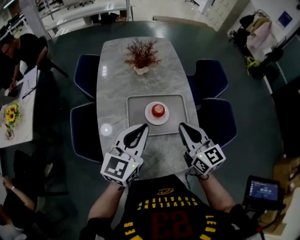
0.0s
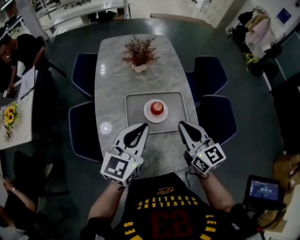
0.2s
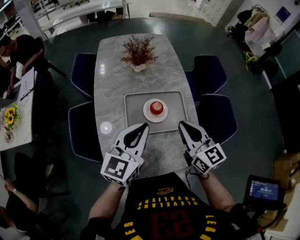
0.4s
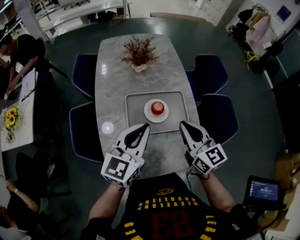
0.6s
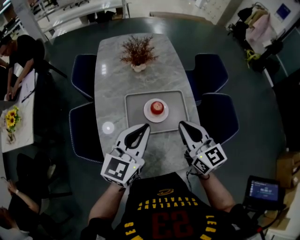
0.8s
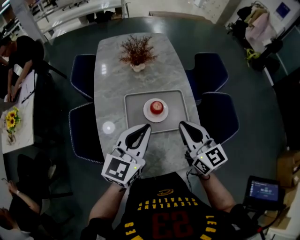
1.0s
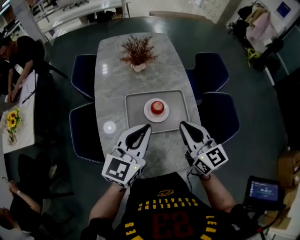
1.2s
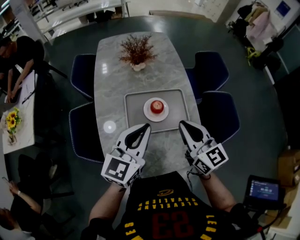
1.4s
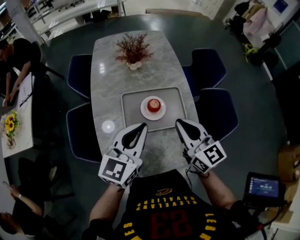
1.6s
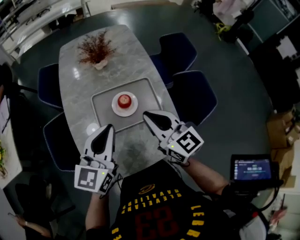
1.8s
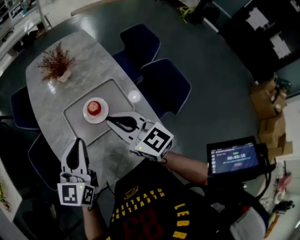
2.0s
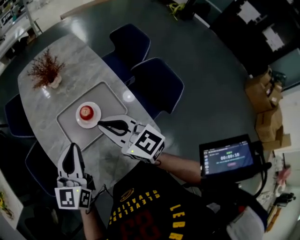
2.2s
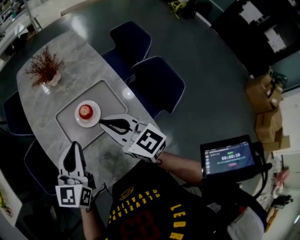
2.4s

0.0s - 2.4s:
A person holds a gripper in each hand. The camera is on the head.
0.0s - 2.4s: There are only small adjustments of the grippers.

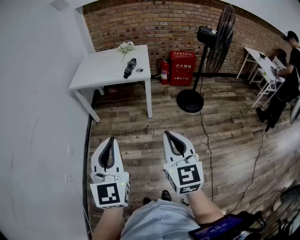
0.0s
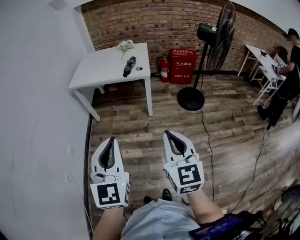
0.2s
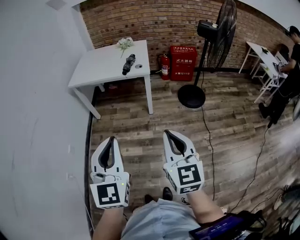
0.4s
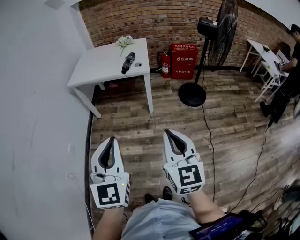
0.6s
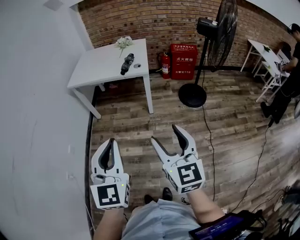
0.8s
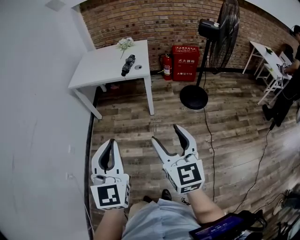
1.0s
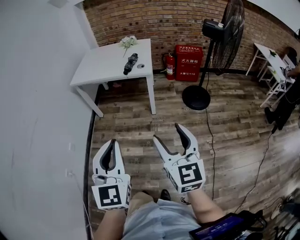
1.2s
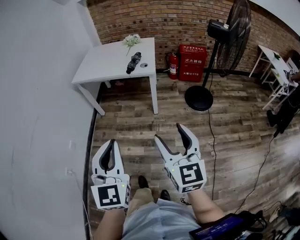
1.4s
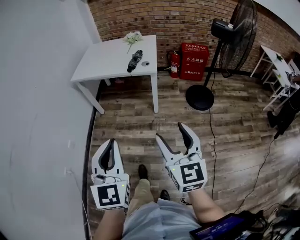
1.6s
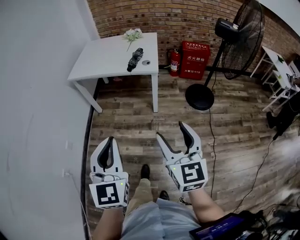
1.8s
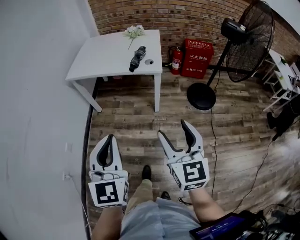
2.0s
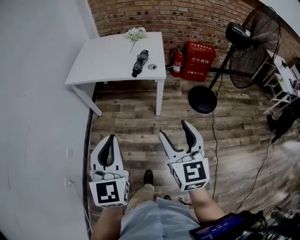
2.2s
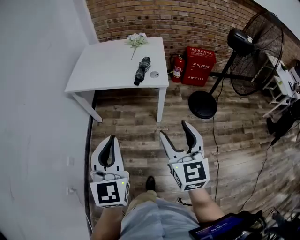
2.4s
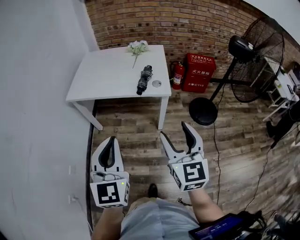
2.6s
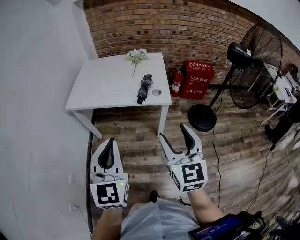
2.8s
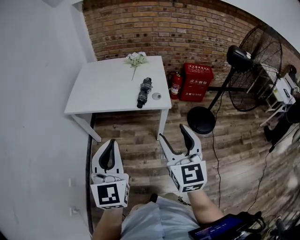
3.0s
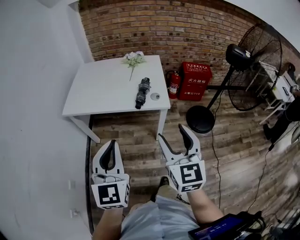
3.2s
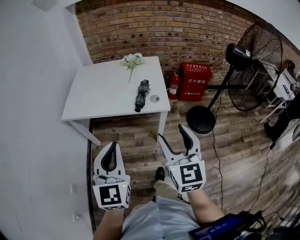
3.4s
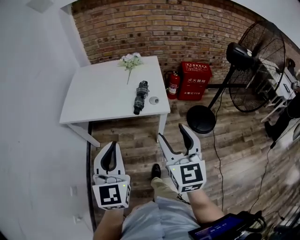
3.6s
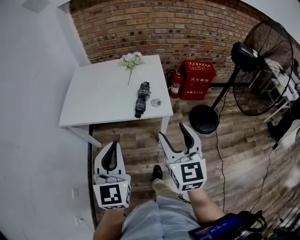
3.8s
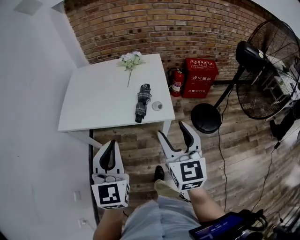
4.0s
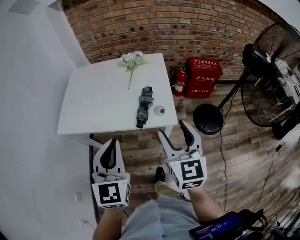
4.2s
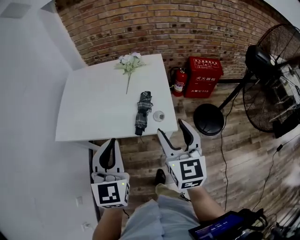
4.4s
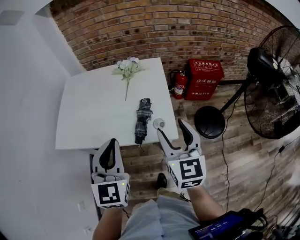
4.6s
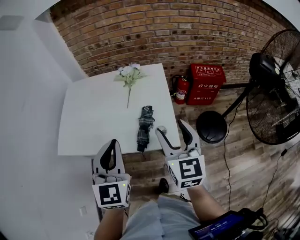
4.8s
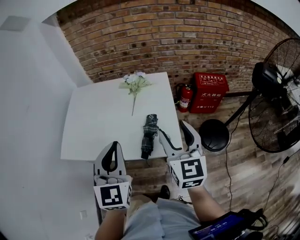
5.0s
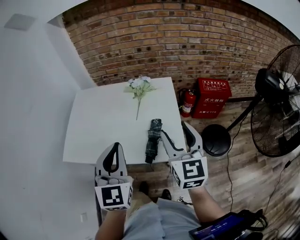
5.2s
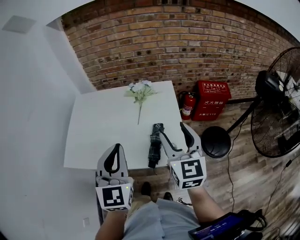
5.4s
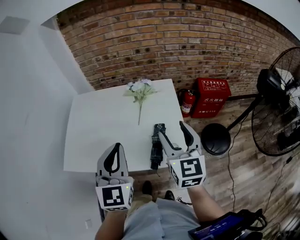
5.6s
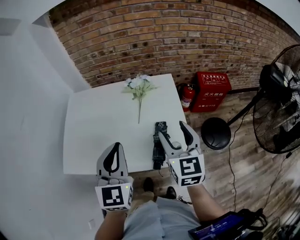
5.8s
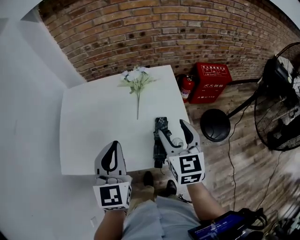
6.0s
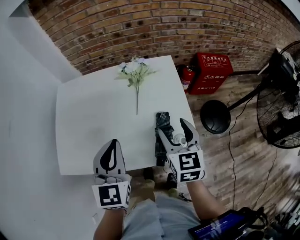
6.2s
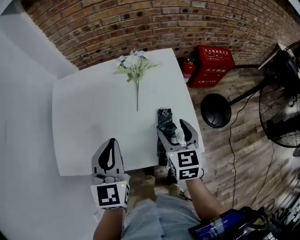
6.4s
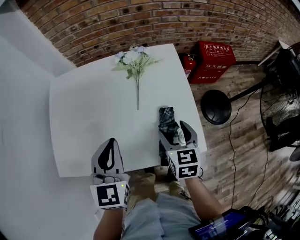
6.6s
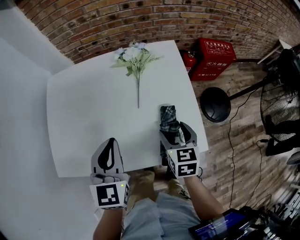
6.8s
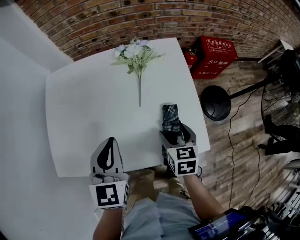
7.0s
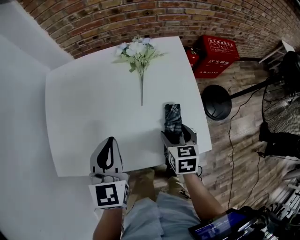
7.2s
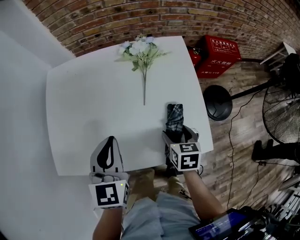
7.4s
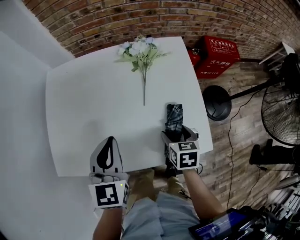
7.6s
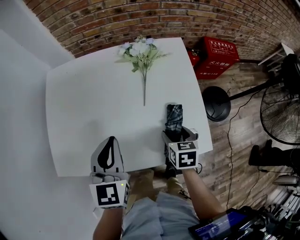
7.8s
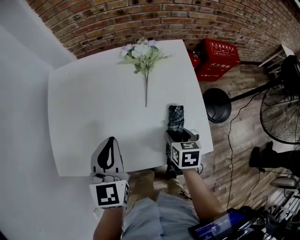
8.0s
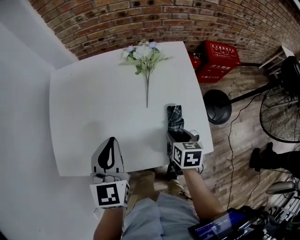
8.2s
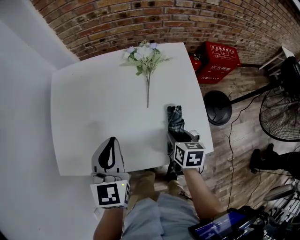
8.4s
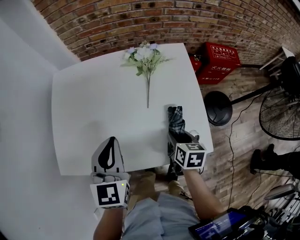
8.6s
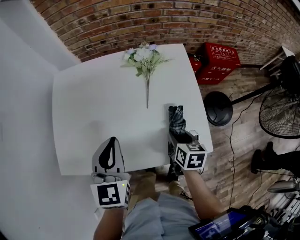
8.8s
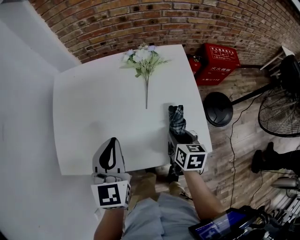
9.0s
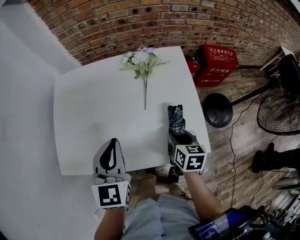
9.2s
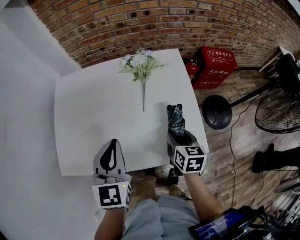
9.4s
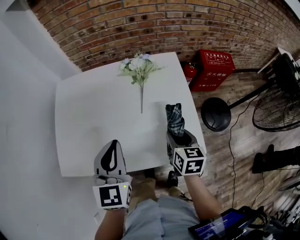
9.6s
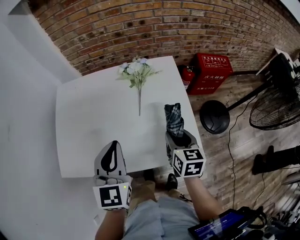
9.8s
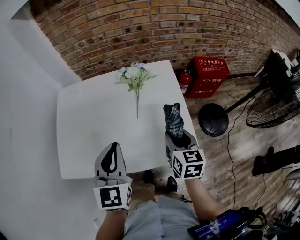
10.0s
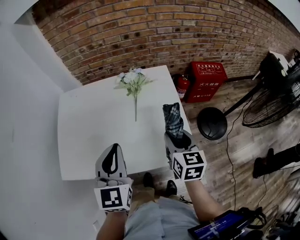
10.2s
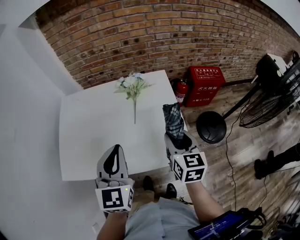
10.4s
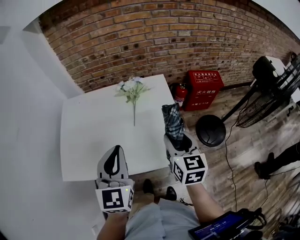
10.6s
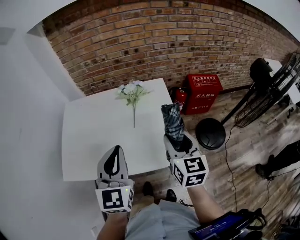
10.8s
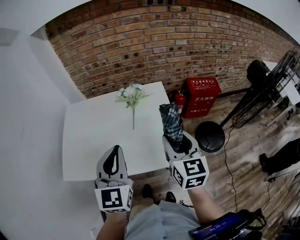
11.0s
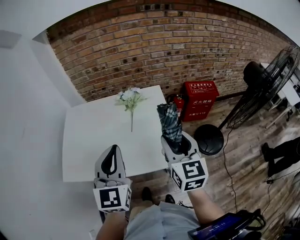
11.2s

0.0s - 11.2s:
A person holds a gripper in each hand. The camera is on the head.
0.0s - 1.6s: The grippers both shift forward by approximately 10 cm. The right gripper opens up.
1.6s - 3.2s: Both grippers move forward, about 30 cm.
3.2s - 4.8s: Both grippers travel together forward, approximately 30 cm.
4.8s - 6.4s: The left gripper shifts approximately 20 cm forward, to the left and downward. Meanwhile the right gripper is displaced downward, forward and to the left by about 20 cm, and changes its angle by some 20 degrees.
6.4s - 8.0s: The left gripper shifts by roughly 5 cm; the right gripper goes some 15 cm downward, and swivels some 30 degrees.
8.0s - 9.6s: The left gripper moves about 5 cm, while the right gripper is displaced upward by about 10 cm.
9.6s - 11.2s: The left gripper moves upward, backward and to the right, some 15 cm. The right gripper moves upward, approximately 20 cm, and rotates approximately 30 degrees.

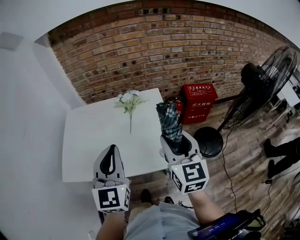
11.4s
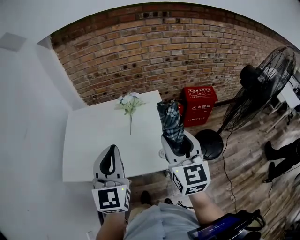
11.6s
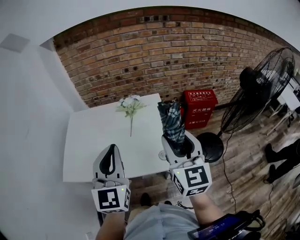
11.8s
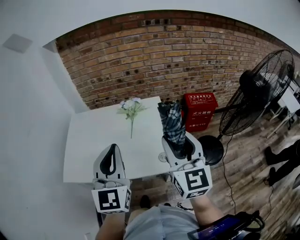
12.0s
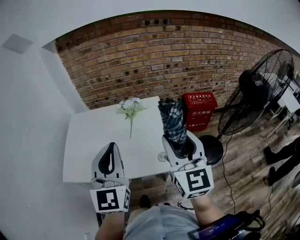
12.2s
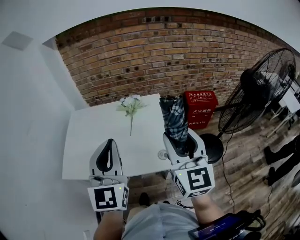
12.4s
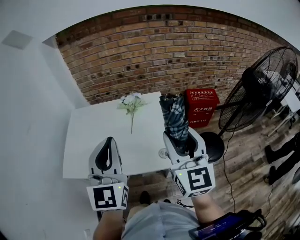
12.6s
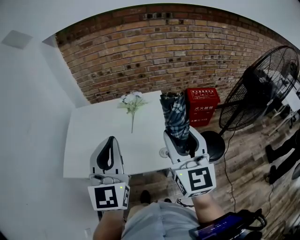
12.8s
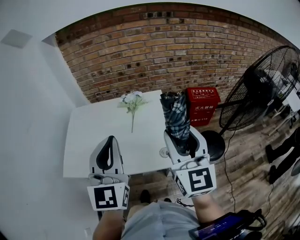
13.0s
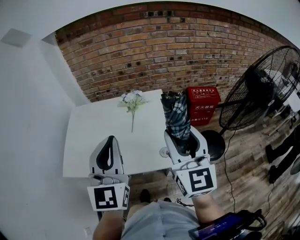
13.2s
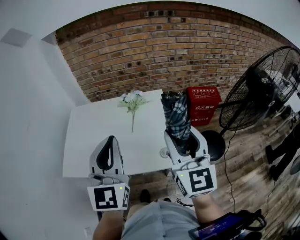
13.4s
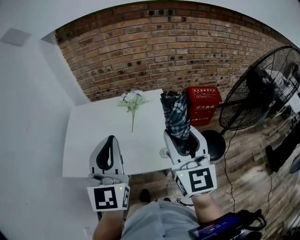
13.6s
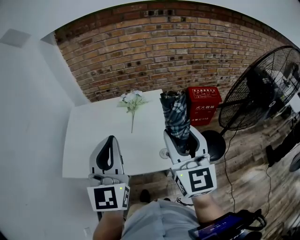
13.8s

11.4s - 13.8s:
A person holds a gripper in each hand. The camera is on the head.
11.4s - 12.6s: The grippers both shift upward by some 5 cm.
12.6s - 13.8s: There are only small adjustments of the grippers.

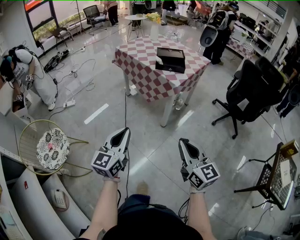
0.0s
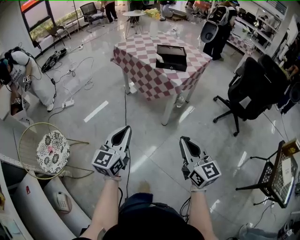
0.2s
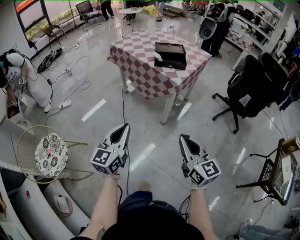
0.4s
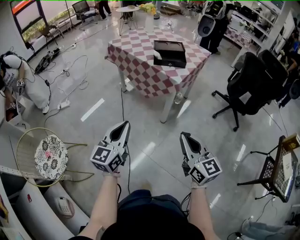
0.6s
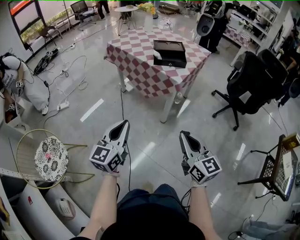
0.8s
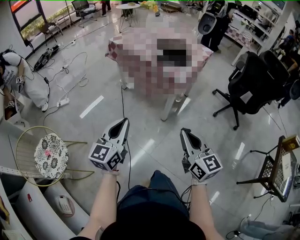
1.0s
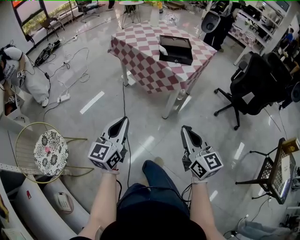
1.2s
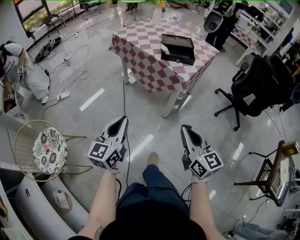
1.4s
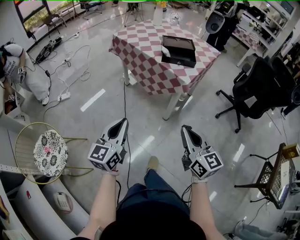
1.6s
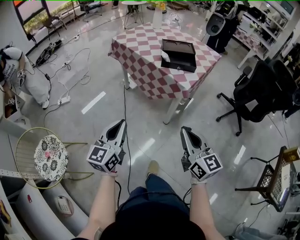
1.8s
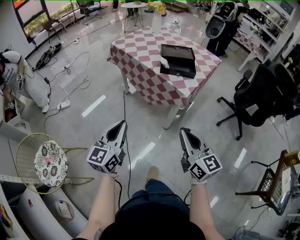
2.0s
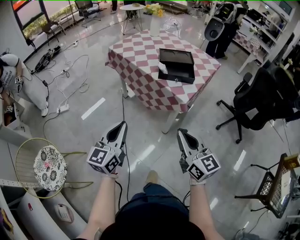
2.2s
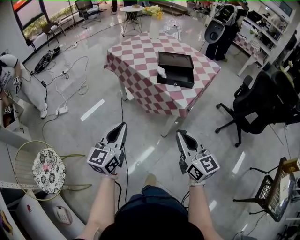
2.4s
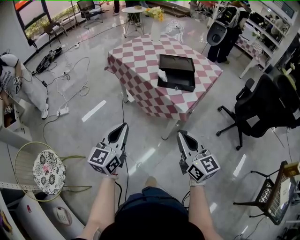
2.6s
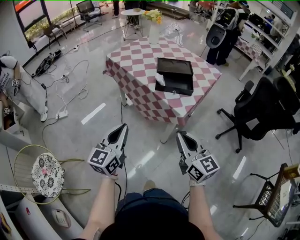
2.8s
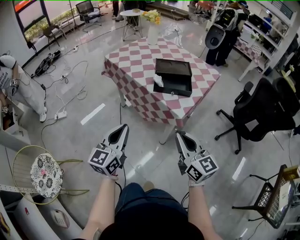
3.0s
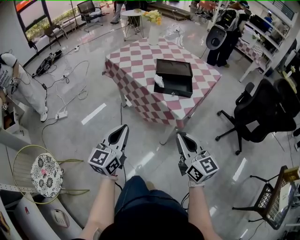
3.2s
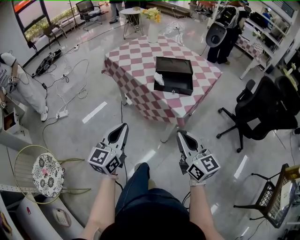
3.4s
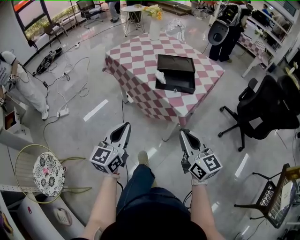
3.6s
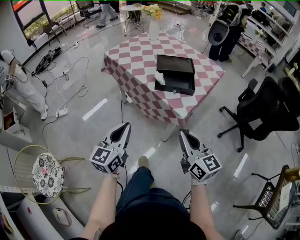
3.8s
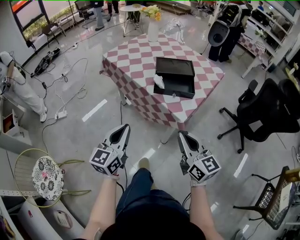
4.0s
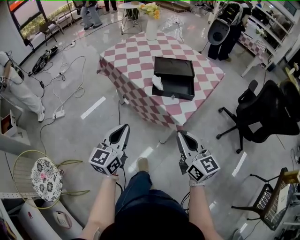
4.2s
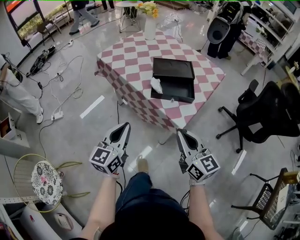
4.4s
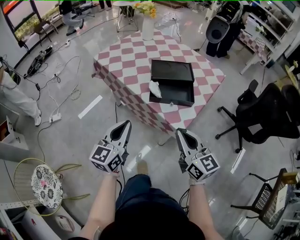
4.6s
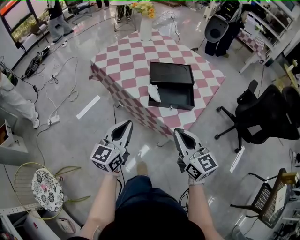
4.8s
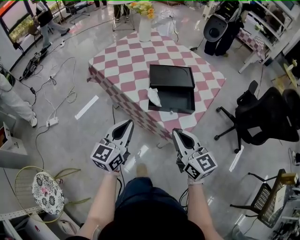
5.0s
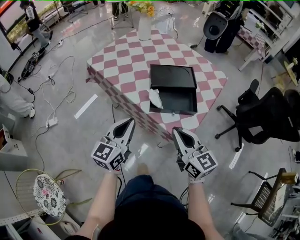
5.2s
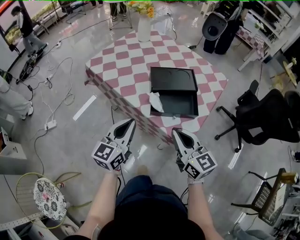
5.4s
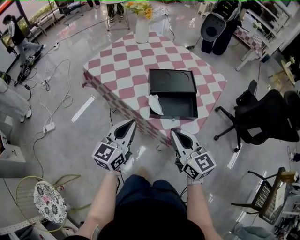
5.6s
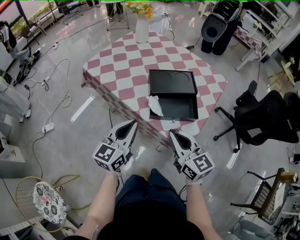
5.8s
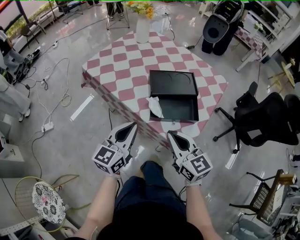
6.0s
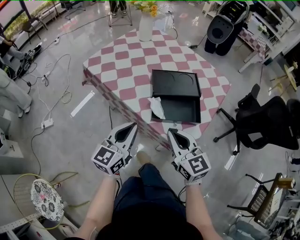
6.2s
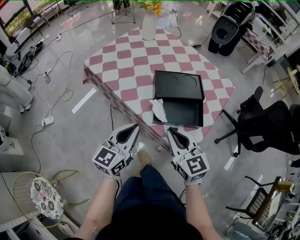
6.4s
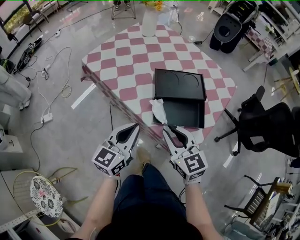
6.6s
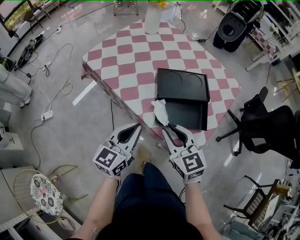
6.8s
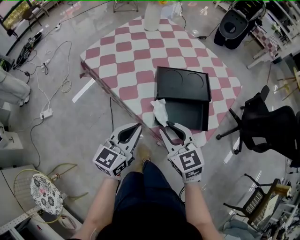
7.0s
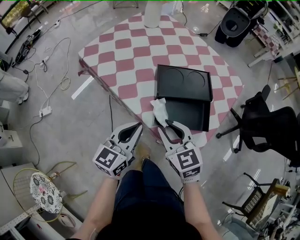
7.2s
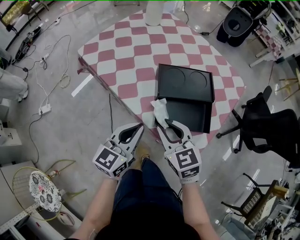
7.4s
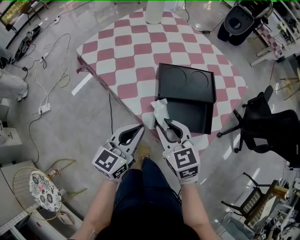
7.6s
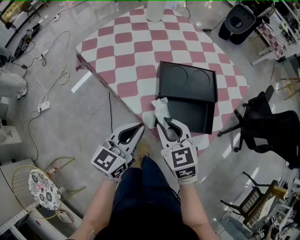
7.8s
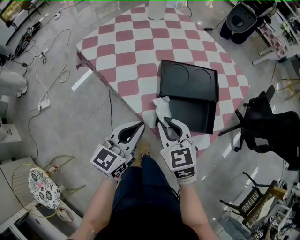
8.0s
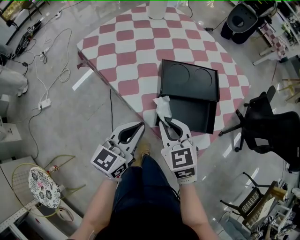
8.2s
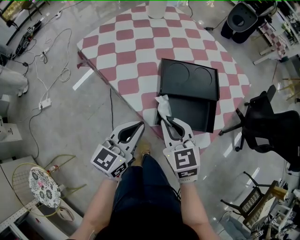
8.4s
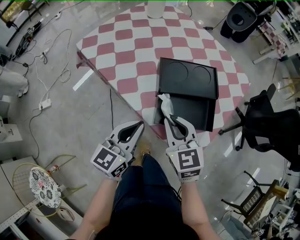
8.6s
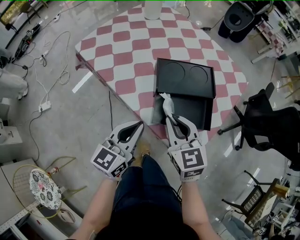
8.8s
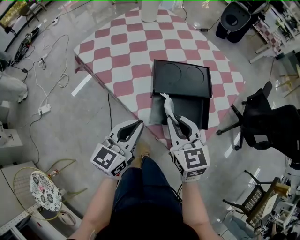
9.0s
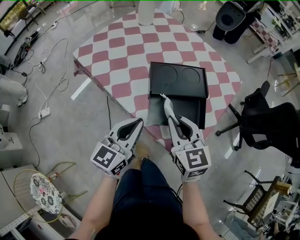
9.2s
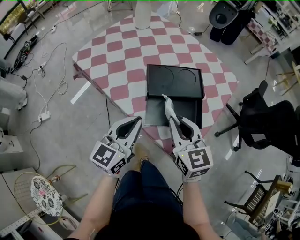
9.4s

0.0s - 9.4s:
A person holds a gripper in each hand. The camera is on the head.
0.0s - 1.6s: Both grippers move forward, approximately 15 cm.
1.6s - 3.2s: Both grippers travel together forward, about 20 cm.
3.2s - 4.8s: The grippers both shift forward by some 20 cm.
4.8s - 6.2s: The two grippers go about 10 cm forward.
6.2s - 7.8s: The left gripper goes roughly 10 cm forward and downward. Meanwhile the right gripper moves forward and downward, roughly 15 cm, rotates some 20 degrees, and opens.
7.8s - 9.4s: The left gripper ends up approximately 5 cm from where it was. Meanwhile the right gripper goes about 10 cm to the right and upward.
